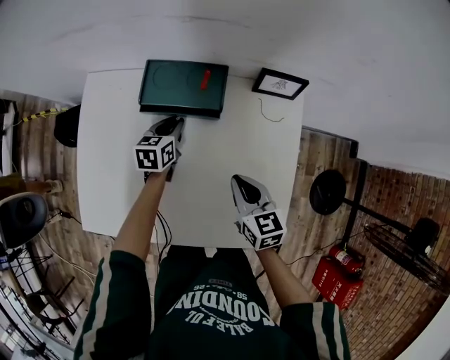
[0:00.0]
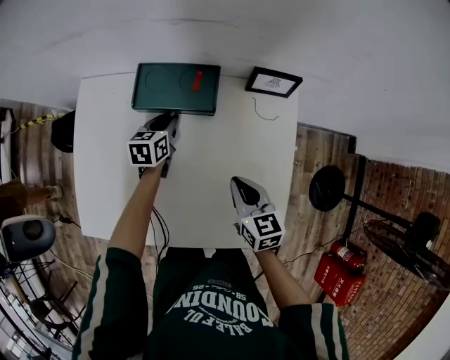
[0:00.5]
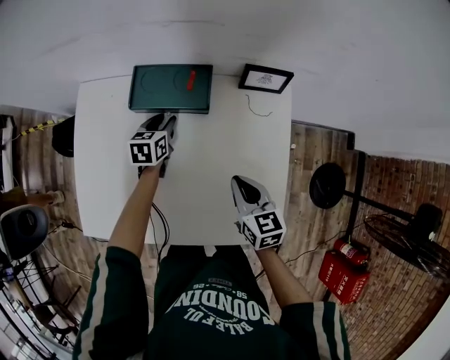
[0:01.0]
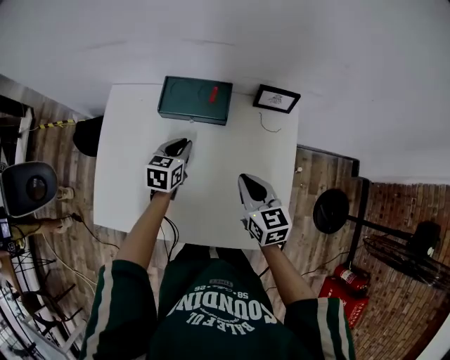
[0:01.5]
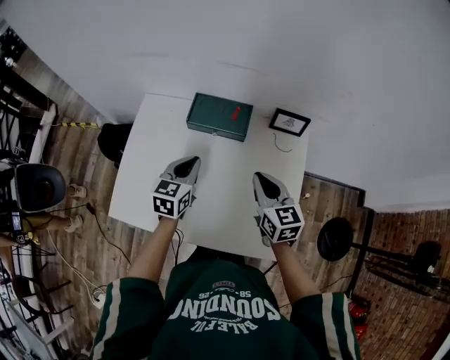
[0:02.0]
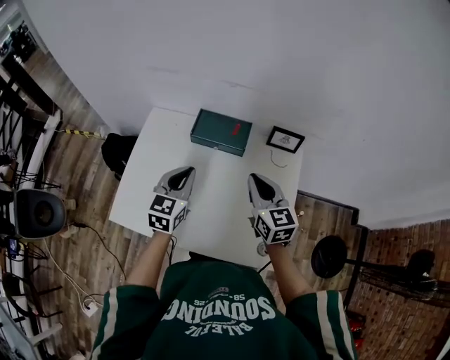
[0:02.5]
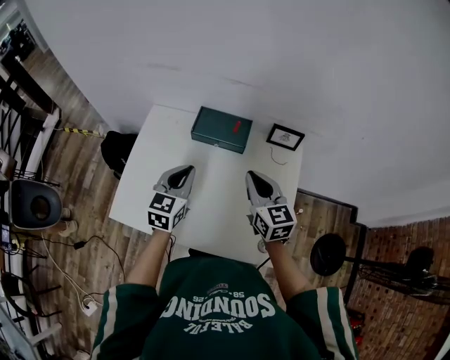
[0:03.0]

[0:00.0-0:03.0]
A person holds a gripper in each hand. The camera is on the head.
0:00.0 to 0:01.5: The right gripper shifts some 5 cm upward, while the left gripper moves upward and backward, approximately 10 cm.
0:01.5 to 0:03.0: The left gripper is displaced upward and backward by about 20 cm, and swivels roughly 20 degrees. The right gripper heads upward, covering roughly 10 cm.

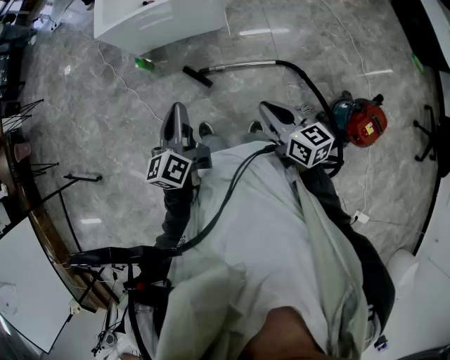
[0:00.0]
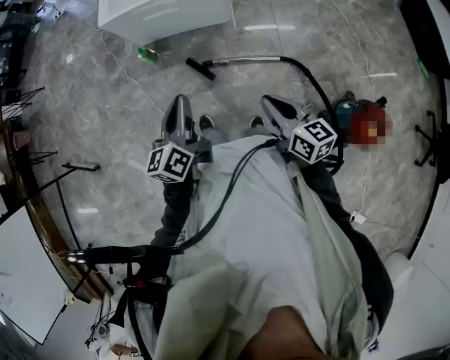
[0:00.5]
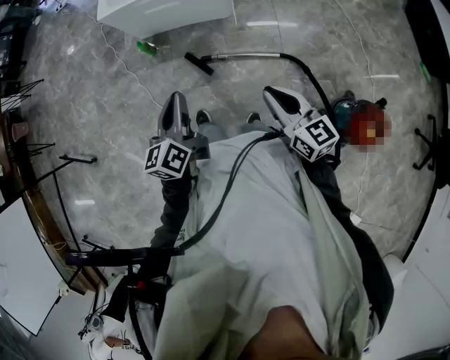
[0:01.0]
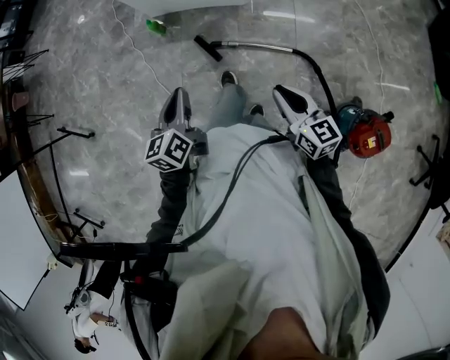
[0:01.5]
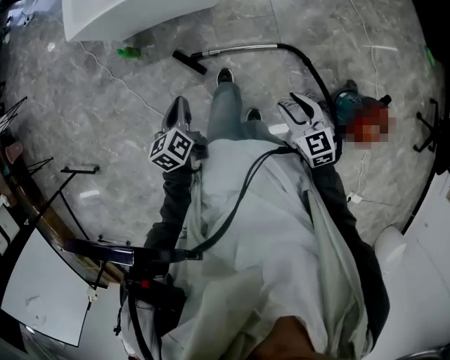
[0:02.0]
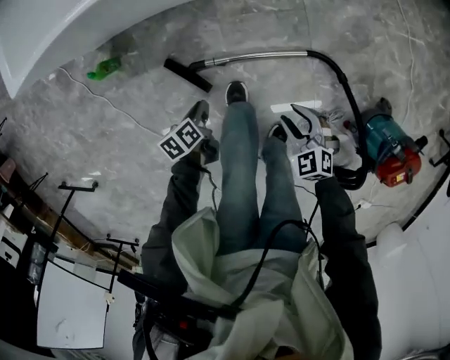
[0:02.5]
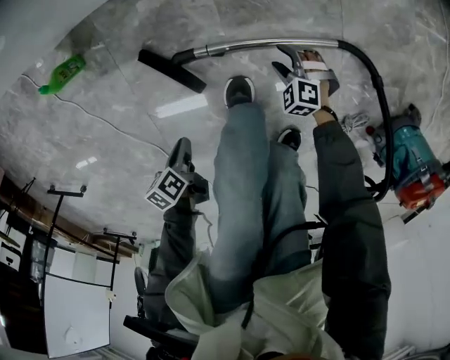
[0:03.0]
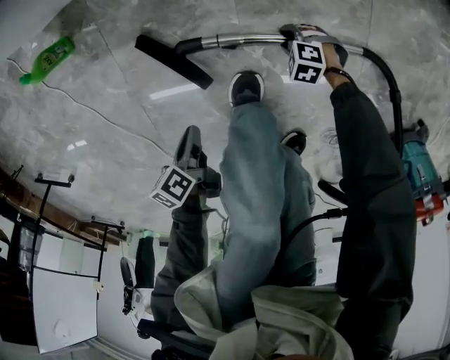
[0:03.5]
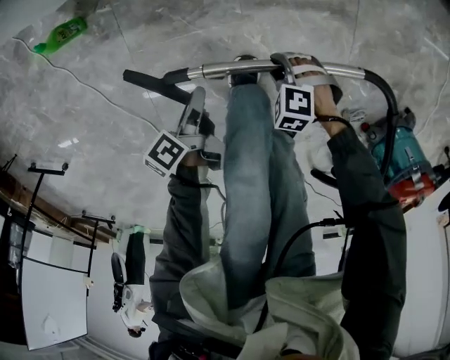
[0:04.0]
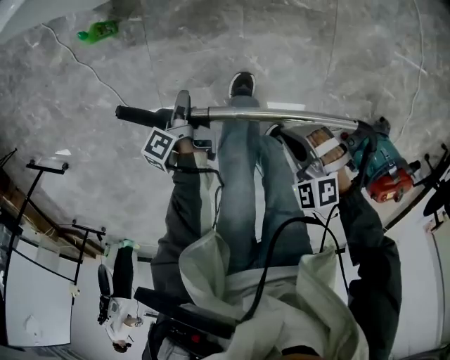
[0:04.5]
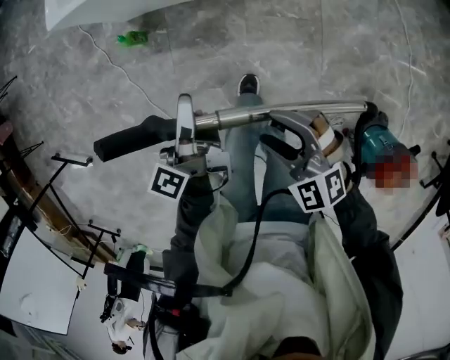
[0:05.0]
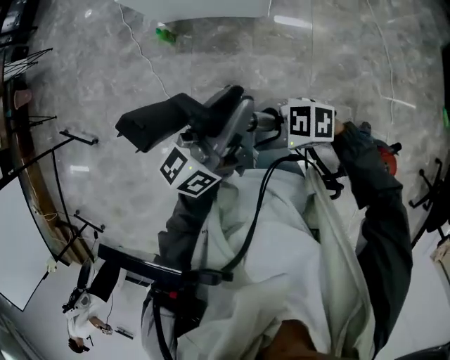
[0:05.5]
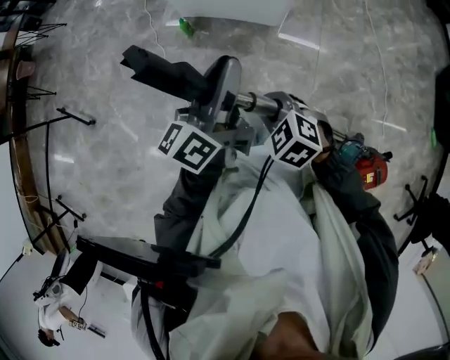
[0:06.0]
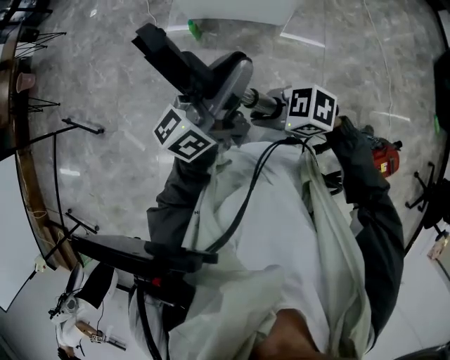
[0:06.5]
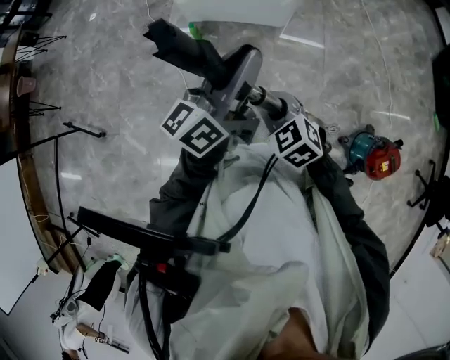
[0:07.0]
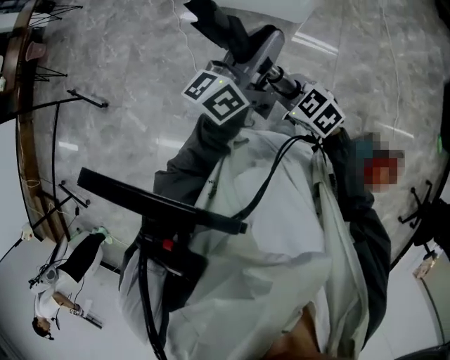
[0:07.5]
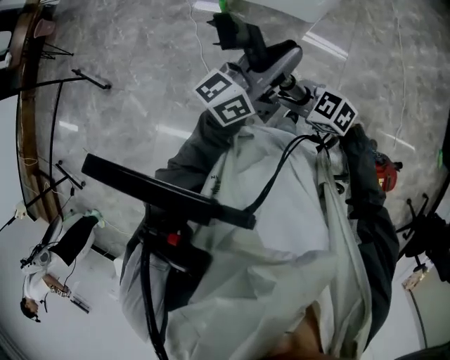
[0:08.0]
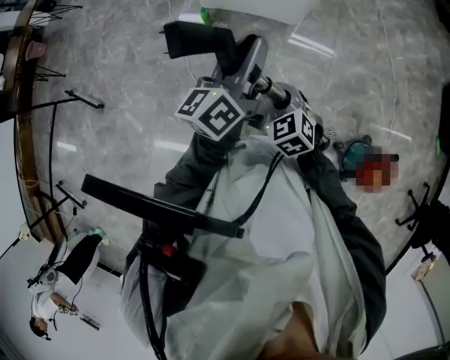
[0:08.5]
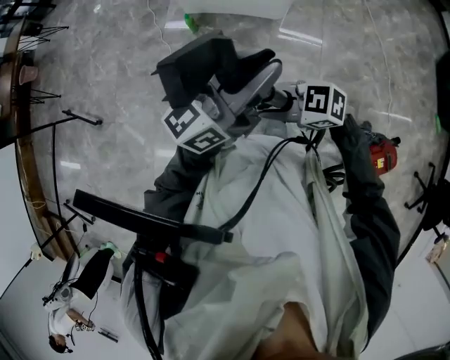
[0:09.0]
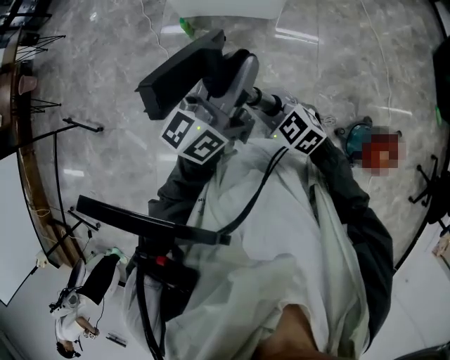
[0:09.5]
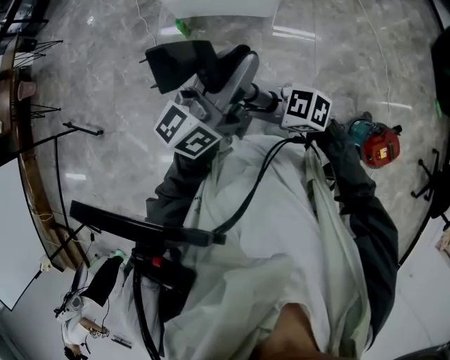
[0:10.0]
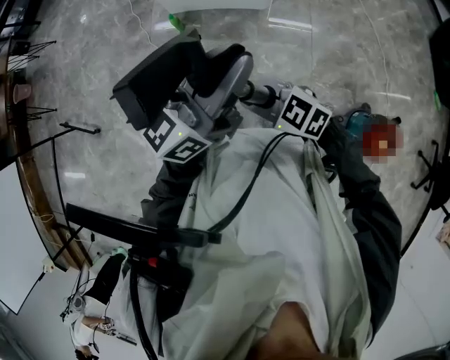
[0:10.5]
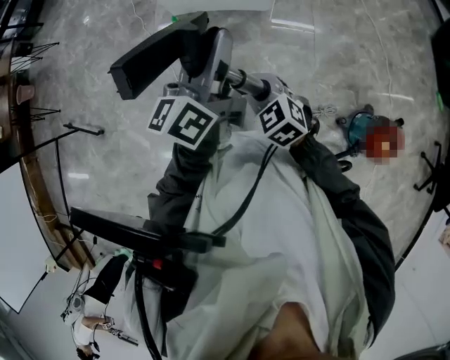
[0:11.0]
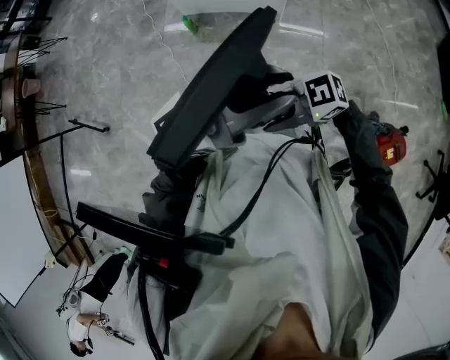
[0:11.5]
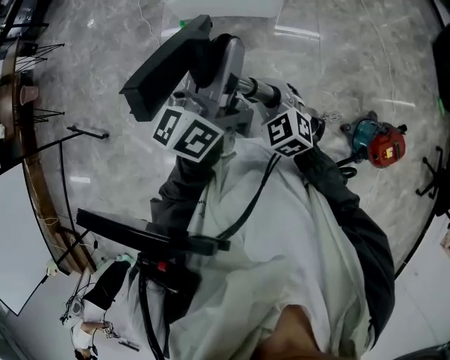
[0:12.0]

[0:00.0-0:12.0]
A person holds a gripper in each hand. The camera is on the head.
0:00.0 to 0:02.0: The right gripper moves downward, to the right and forward, roughly 20 cm, rotates about 30 degrees, and opens; the left gripper is displaced downward and forward by about 20 cm, and swivels approximately 30 degrees.
0:02.0 to 0:04.0: The two grippers go approximately 50 cm downward. The left gripper twists roughly 40 degrees counterclockwise, seen from behind, and opens up. Meanwhile the right gripper angles its fingers downward, by approximately 40 degrees.
0:04.0 to 0:06.0: Both grippers travel together upward, some 70 cm. The right gripper turns by some 20 degrees, and closes its fingers, while the left gripper tips its fingers upward by some 60 degrees.
0:06.0 to 0:08.0: The right gripper shifts by approximately 10 cm, and changes its angle by roughly 30 degrees. The left gripper swivels some 20 degrees.
0:08.0 to 0:10.0: The left gripper shifts by some 5 cm.
0:10.0 to 0:12.0: The right gripper ends up some 10 cm from where it was, and turns by roughly 50 degrees; the left gripper shifts by roughly 5 cm.

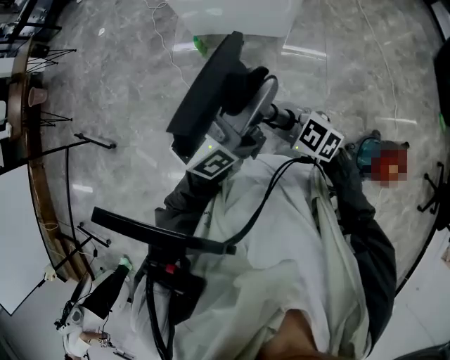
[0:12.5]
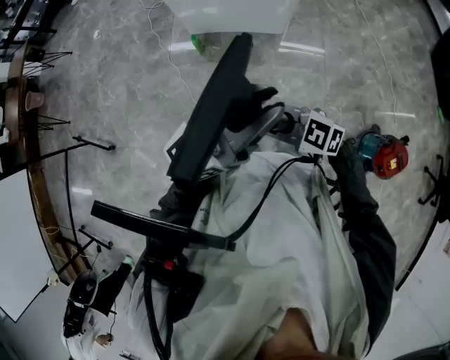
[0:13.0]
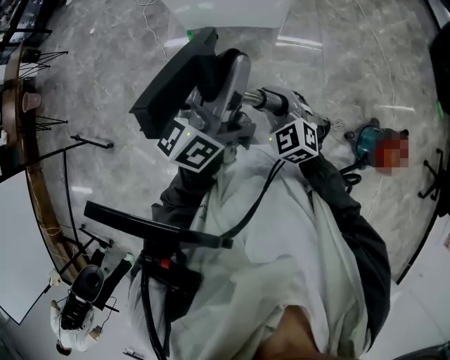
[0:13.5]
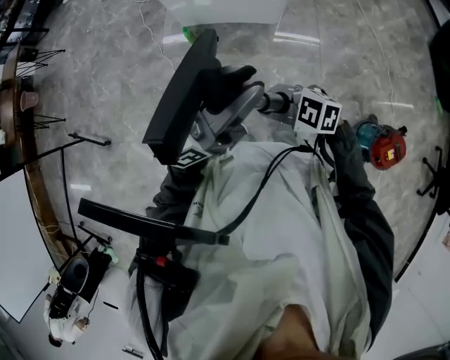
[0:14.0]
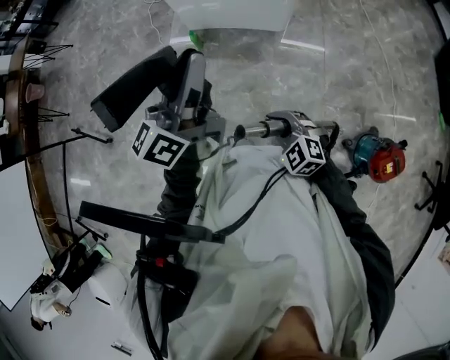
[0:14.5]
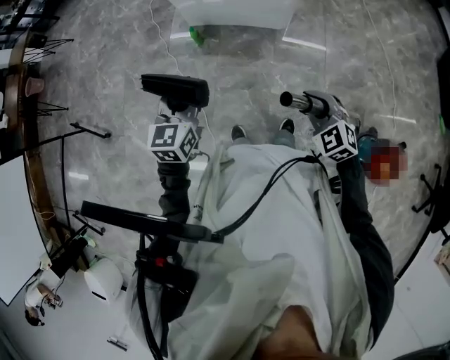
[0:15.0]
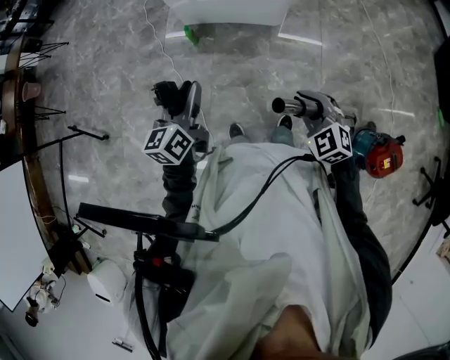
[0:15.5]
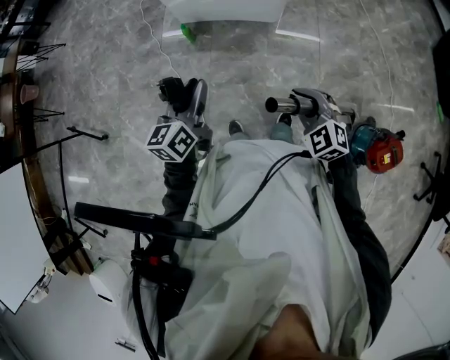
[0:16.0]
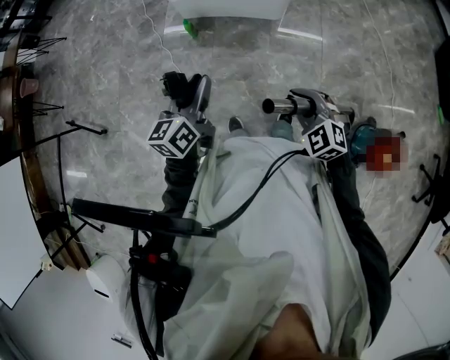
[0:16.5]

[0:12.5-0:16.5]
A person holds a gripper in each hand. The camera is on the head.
0:12.5 to 0:14.5: The right gripper goes some 5 cm downward, and rotates roughly 20 degrees. Meanwhile the left gripper ends up some 10 cm from where it was.
0:14.5 to 0:16.5: The right gripper shifts roughly 10 cm to the right; the left gripper moves downward, approximately 15 cm, and changes its angle by approximately 30 degrees.

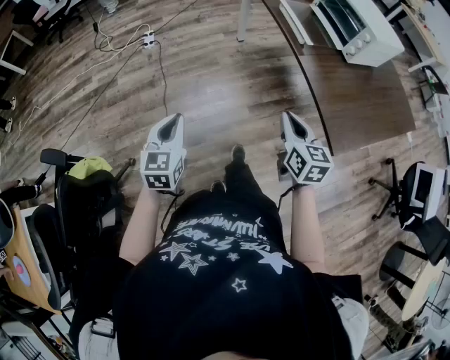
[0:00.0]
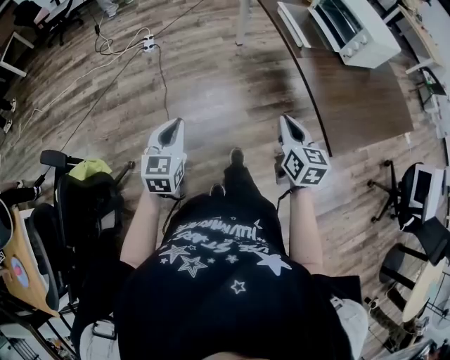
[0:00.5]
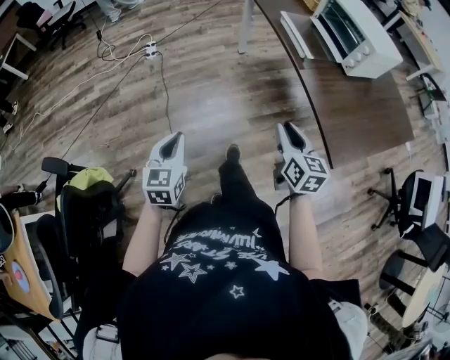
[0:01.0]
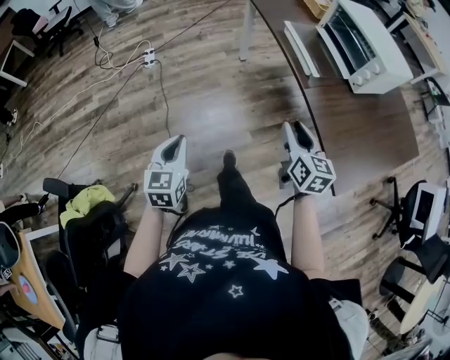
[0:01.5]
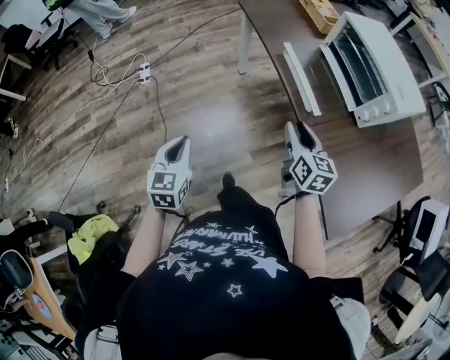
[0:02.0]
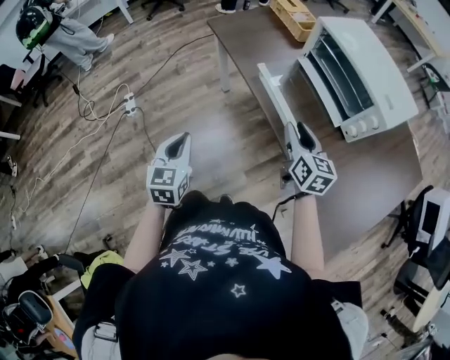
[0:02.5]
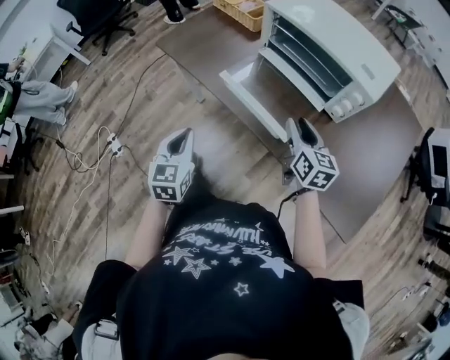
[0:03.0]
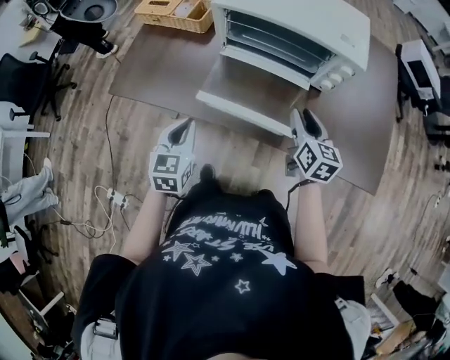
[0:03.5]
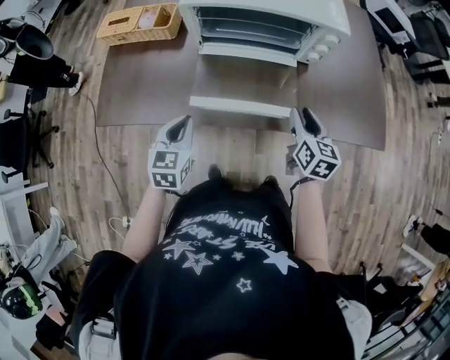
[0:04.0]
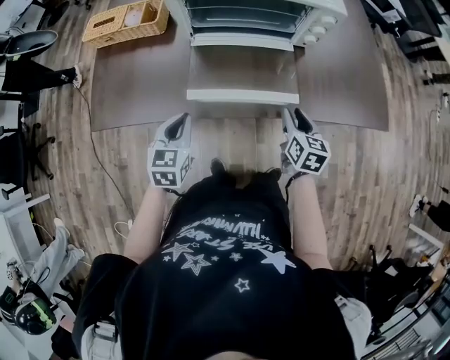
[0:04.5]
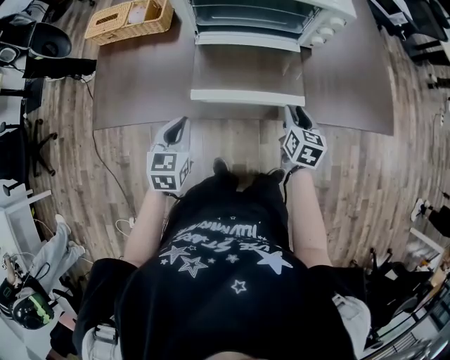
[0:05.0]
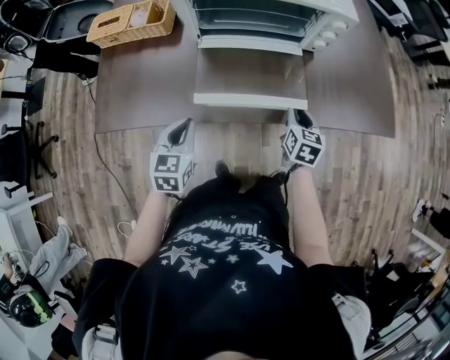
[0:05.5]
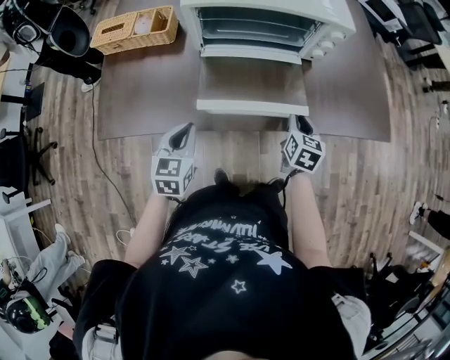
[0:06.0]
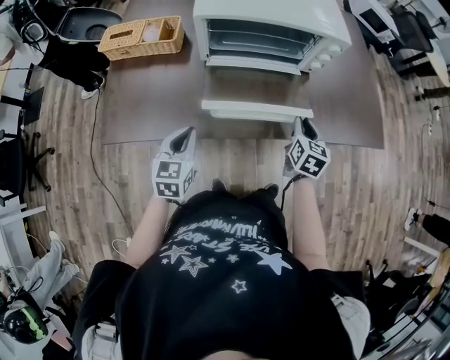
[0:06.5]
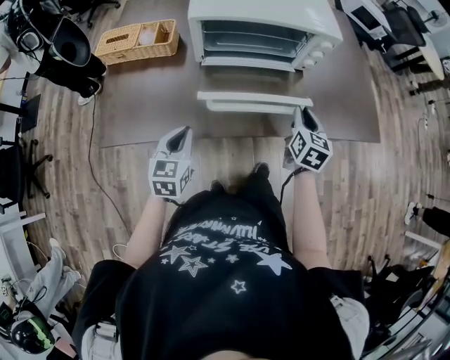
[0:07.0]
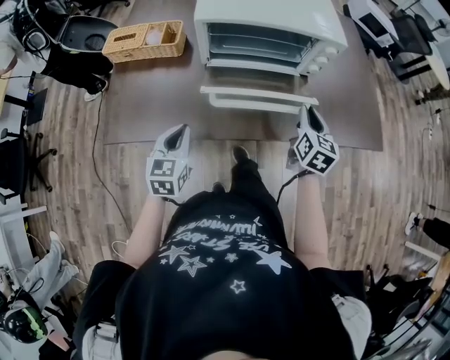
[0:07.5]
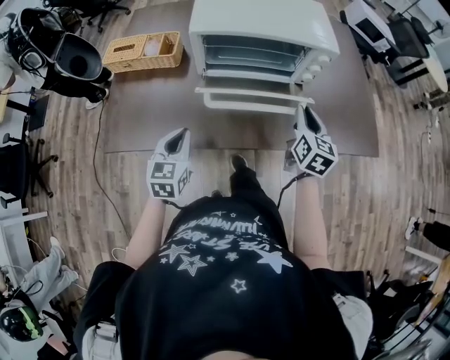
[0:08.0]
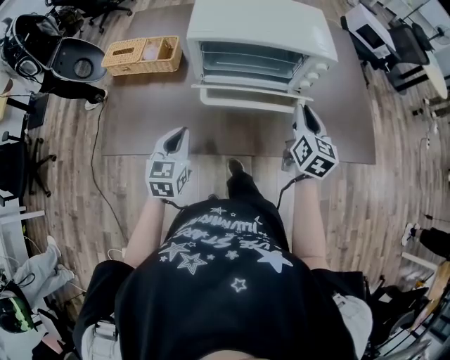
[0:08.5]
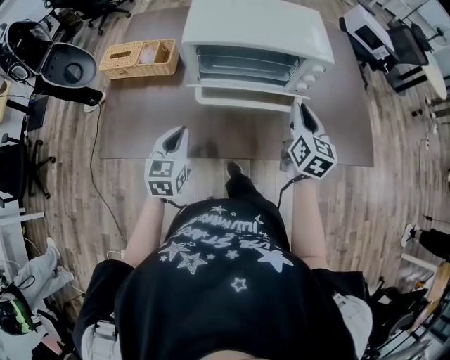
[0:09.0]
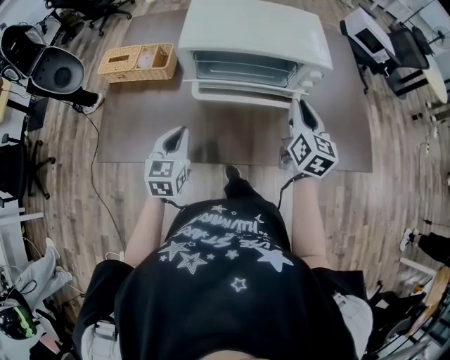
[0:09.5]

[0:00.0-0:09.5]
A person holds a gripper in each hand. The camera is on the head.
0:00.0 to 0:02.0: The two grippers go some 30 cm forward. The right gripper opens.
0:02.0 to 0:04.0: The right gripper shifts by about 15 cm, and rotates about 70 degrees. Meanwhile the left gripper ends up about 50 cm from where it was, and rotates approximately 70 degrees.
0:04.0 to 0:05.5: The right gripper shifts about 10 cm downward.
0:05.5 to 0:07.5: The right gripper goes approximately 10 cm upward, while the left gripper moves approximately 5 cm.
0:07.5 to 0:09.5: The left gripper heads forward, covering approximately 5 cm; the right gripper heads upward and forward, covering approximately 10 cm.
